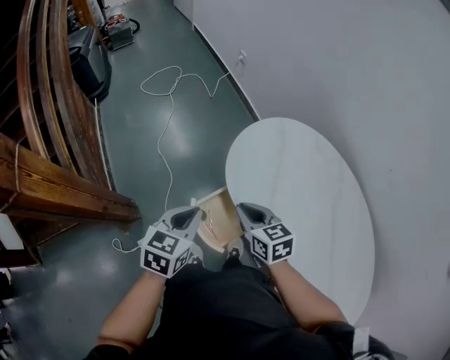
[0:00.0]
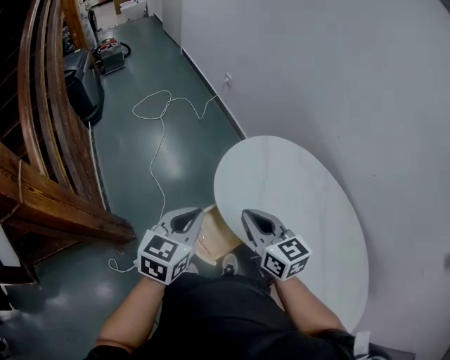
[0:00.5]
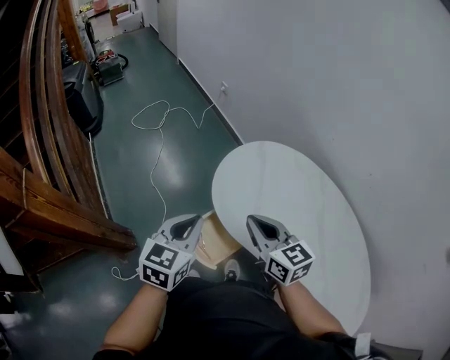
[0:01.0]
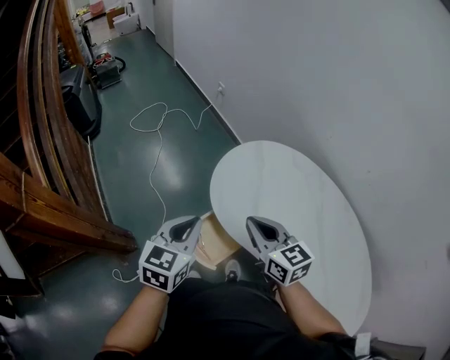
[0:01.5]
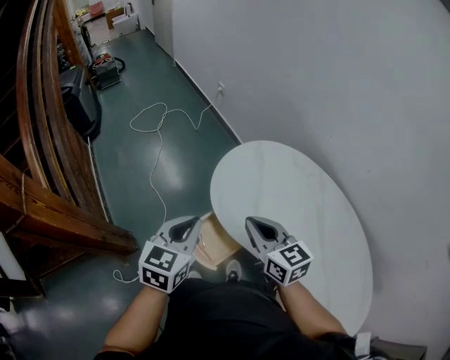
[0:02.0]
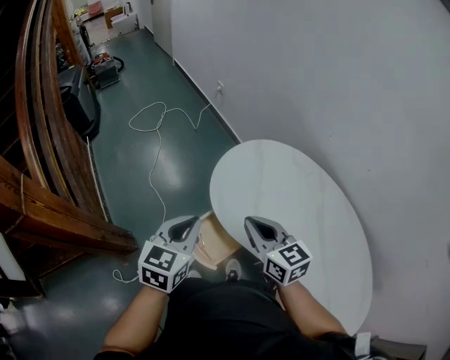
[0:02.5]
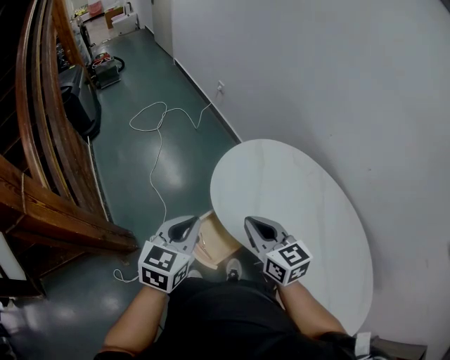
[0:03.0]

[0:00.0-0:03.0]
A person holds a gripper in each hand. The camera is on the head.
0:00.0 to 0:01.5: The right gripper heads upward and to the right, covering some 15 cm, while the left gripper travels upward by approximately 10 cm.
0:01.5 to 0:03.0: Neither gripper changes place.

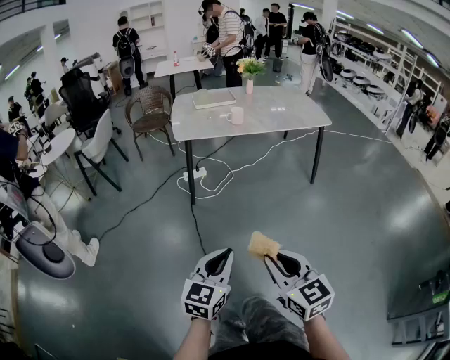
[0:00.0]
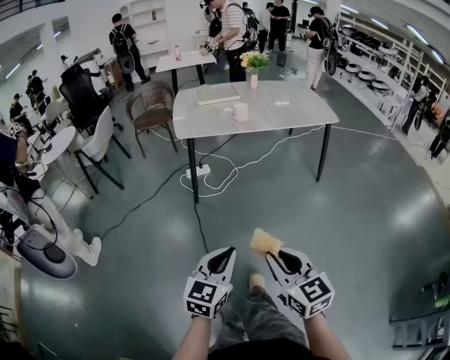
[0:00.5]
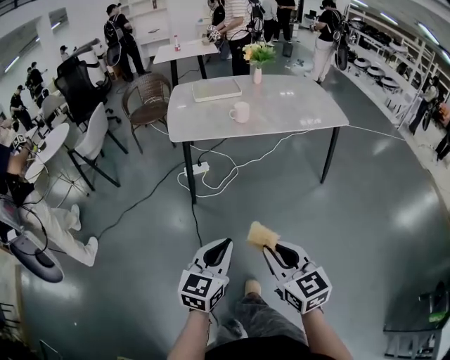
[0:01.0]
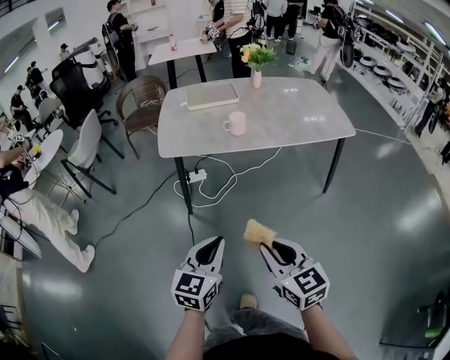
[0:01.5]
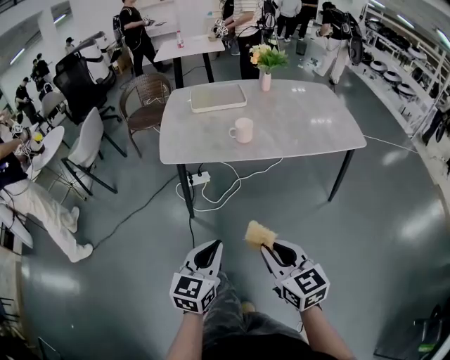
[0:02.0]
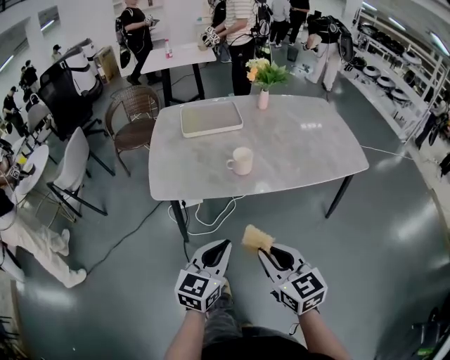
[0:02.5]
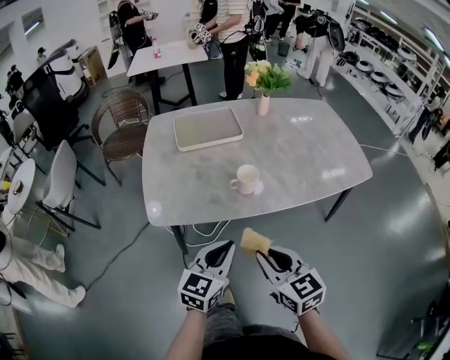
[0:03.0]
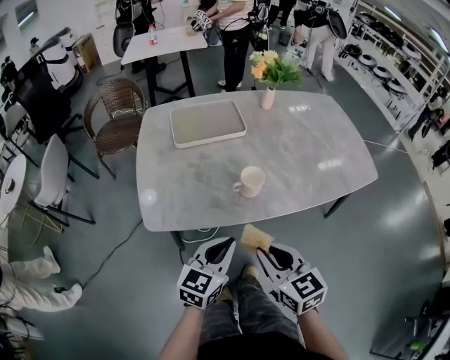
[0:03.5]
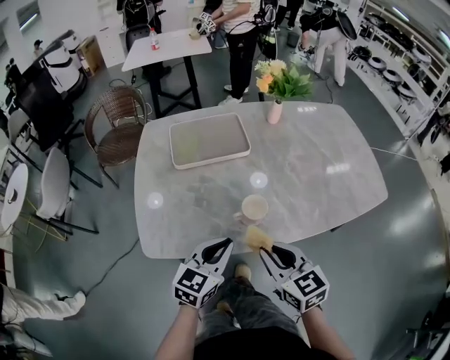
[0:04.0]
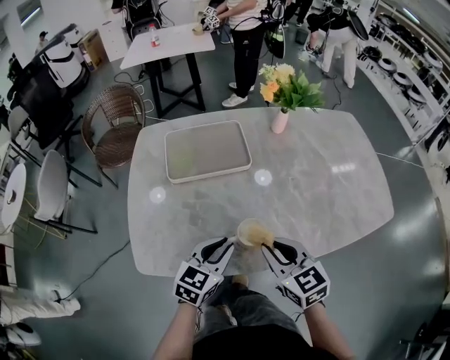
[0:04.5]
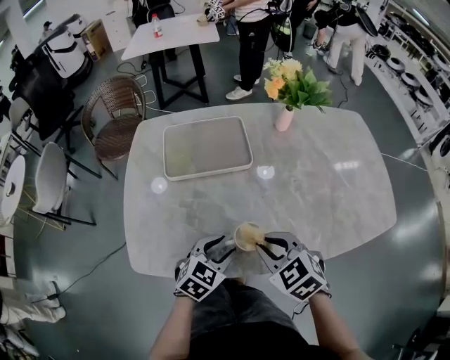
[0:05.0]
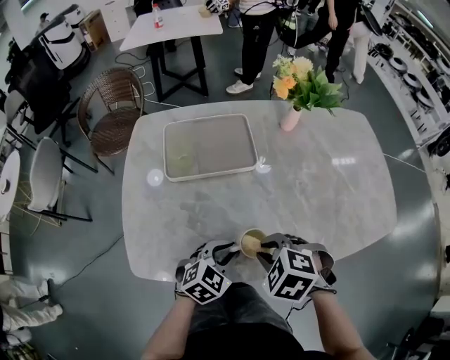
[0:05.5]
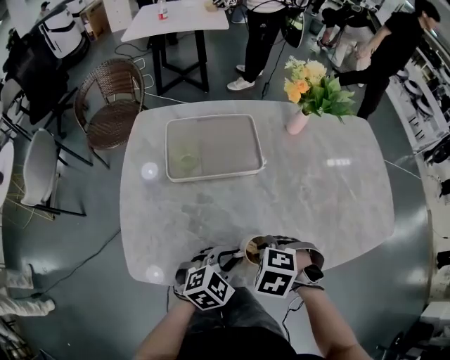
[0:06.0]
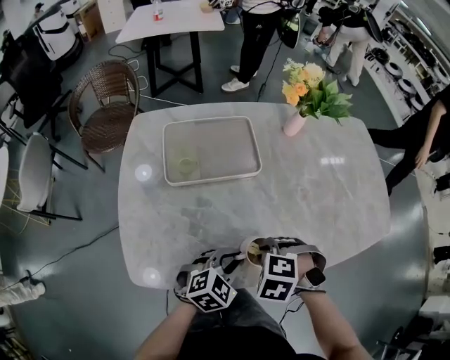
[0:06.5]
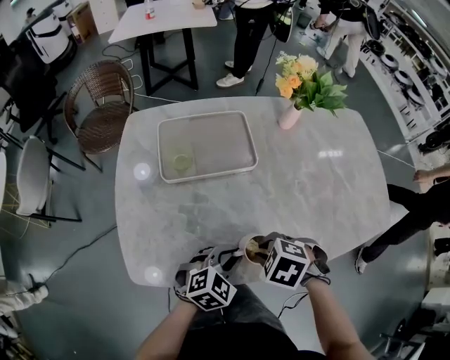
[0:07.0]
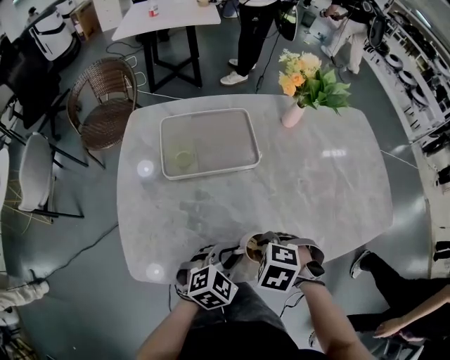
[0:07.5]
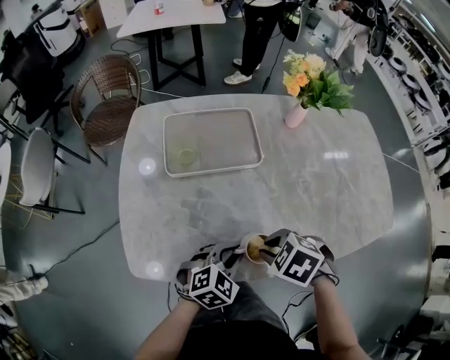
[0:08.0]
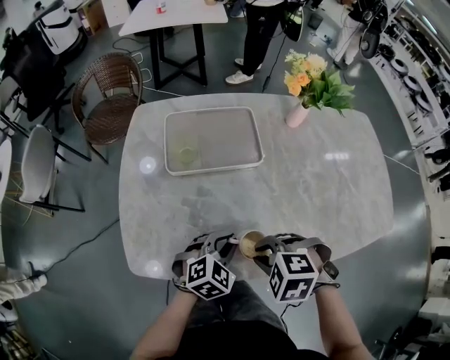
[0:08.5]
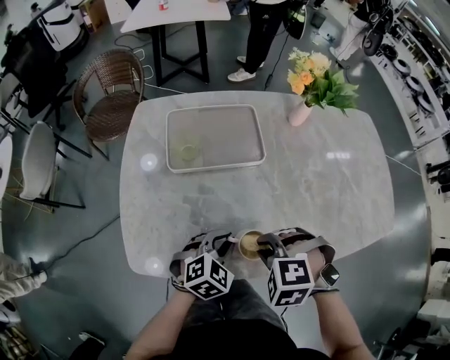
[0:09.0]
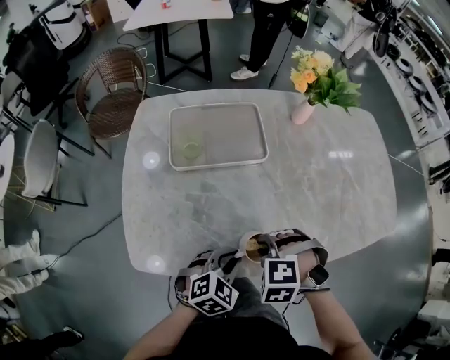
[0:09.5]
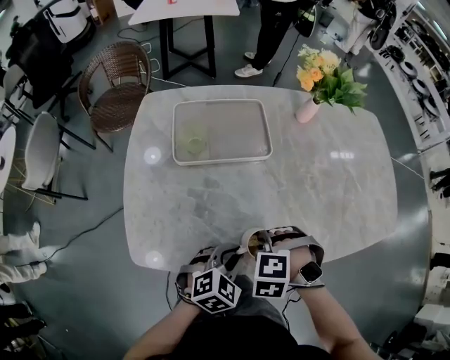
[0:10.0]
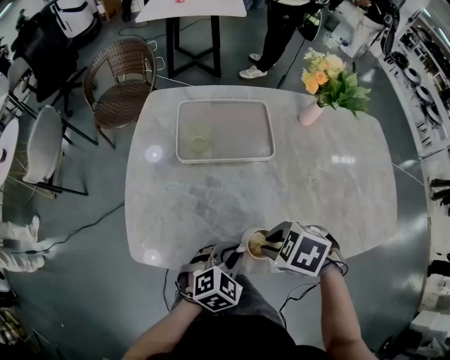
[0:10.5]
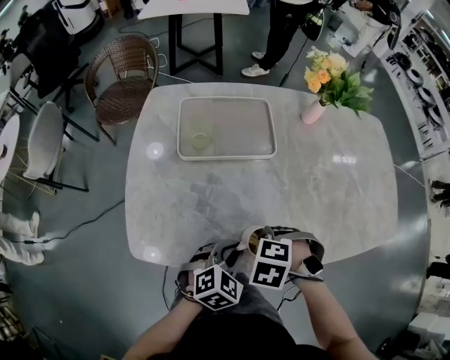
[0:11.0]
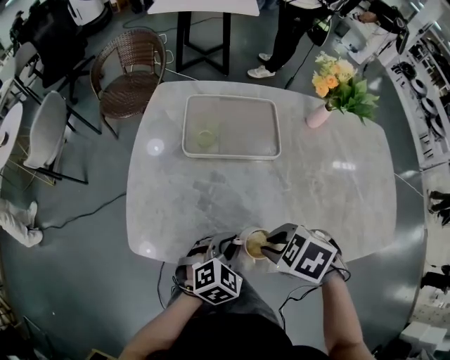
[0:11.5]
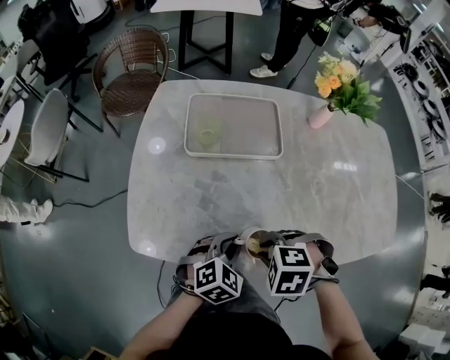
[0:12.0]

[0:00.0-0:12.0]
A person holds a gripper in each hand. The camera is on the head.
0:00.0 to 0:02.0: Both grippers move forward, approximately 35 cm.
0:02.0 to 0:04.0: Both grippers move forward, some 40 cm.
0:04.0 to 0:06.0: The right gripper moves approximately 15 cm, and tilts its fingers approximately 60 degrees downward; the left gripper changes place by approximately 15 cm, changes its angle by about 30 degrees, and opens, then closes once more.
0:08.0 to 0:10.0: The right gripper rotates approximately 40 degrees.
0:10.0 to 0:12.0: The right gripper swings up and down, about 5 cm each way, with 2 reversals.

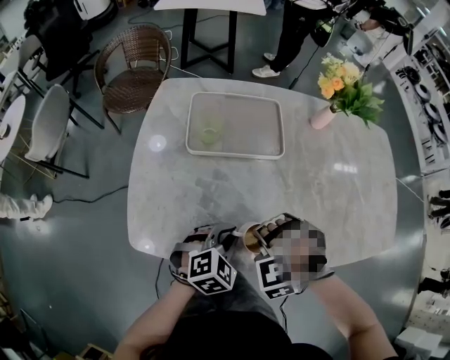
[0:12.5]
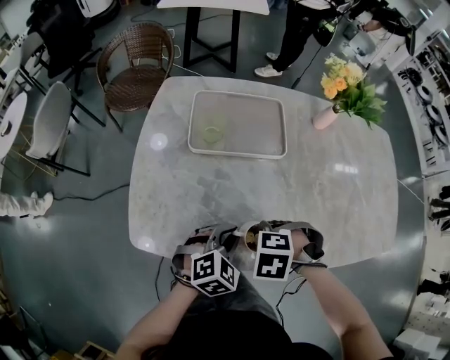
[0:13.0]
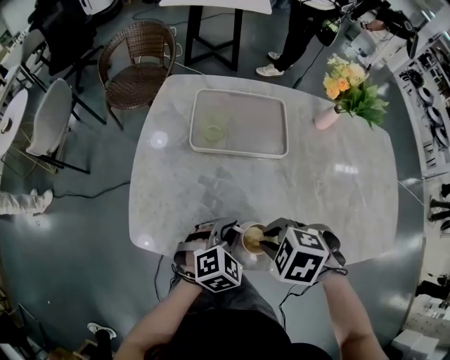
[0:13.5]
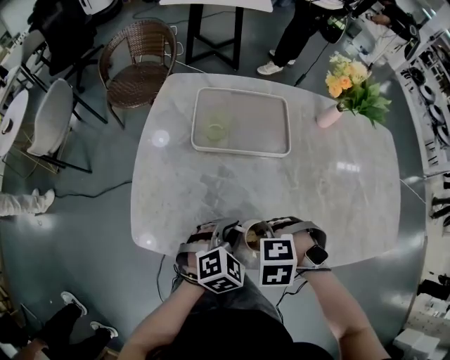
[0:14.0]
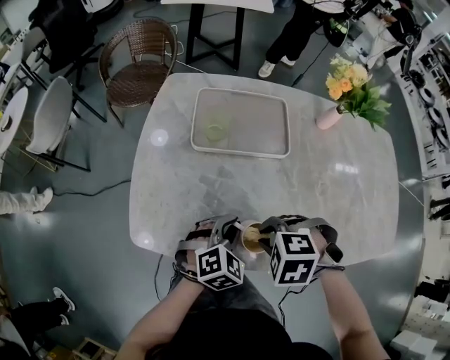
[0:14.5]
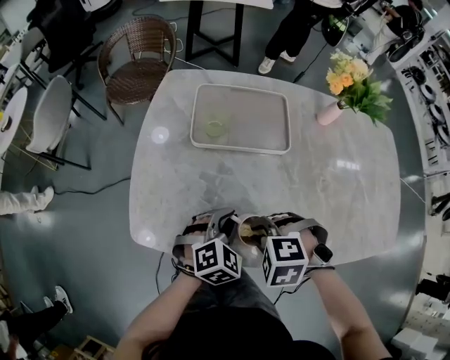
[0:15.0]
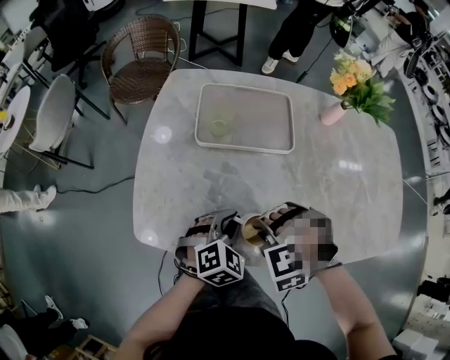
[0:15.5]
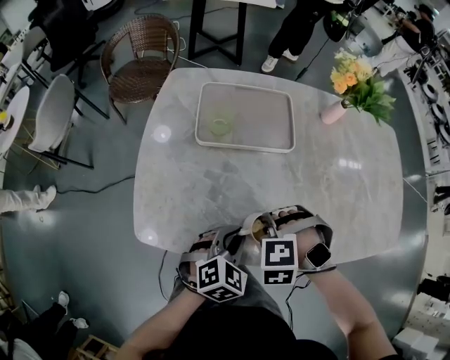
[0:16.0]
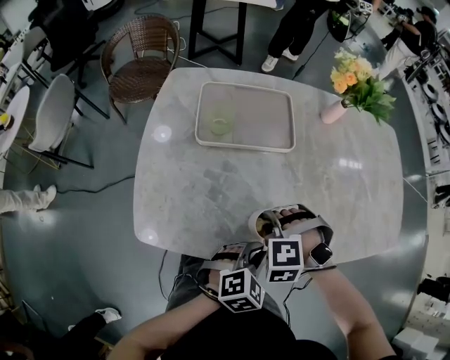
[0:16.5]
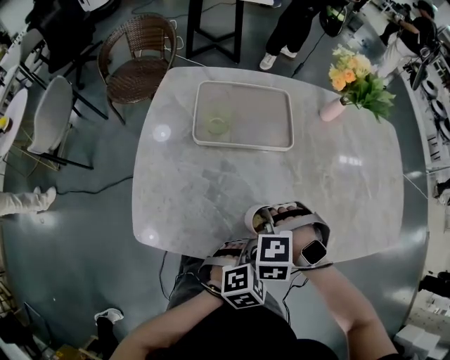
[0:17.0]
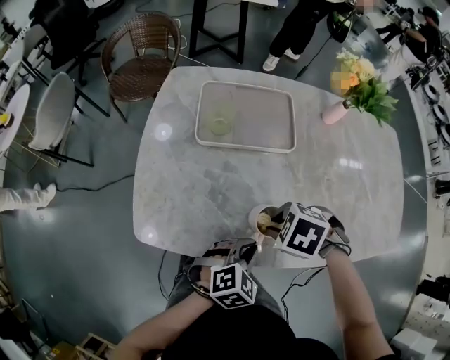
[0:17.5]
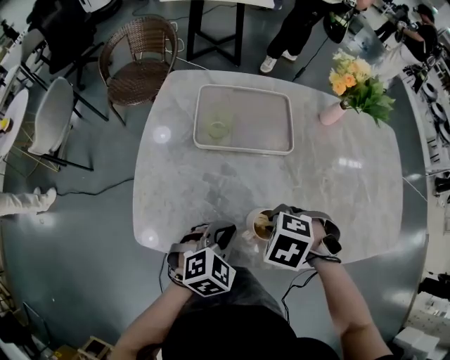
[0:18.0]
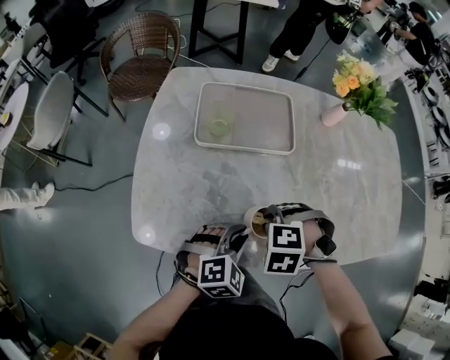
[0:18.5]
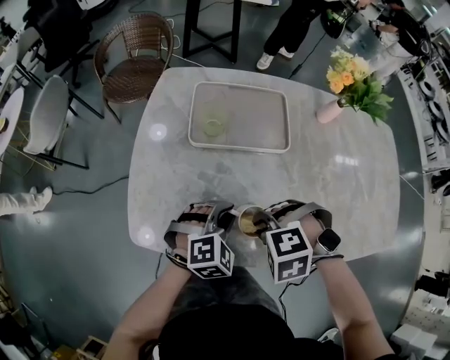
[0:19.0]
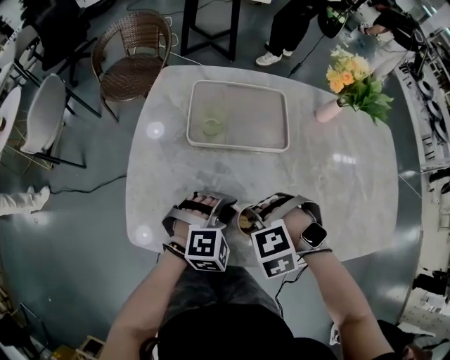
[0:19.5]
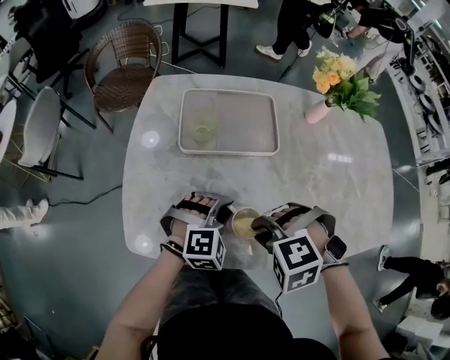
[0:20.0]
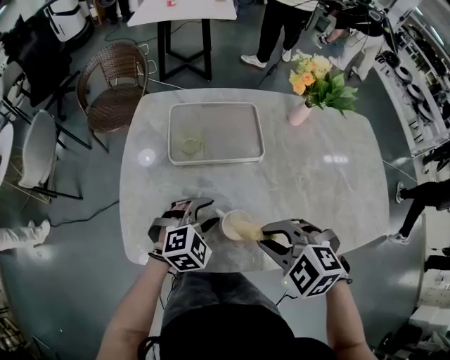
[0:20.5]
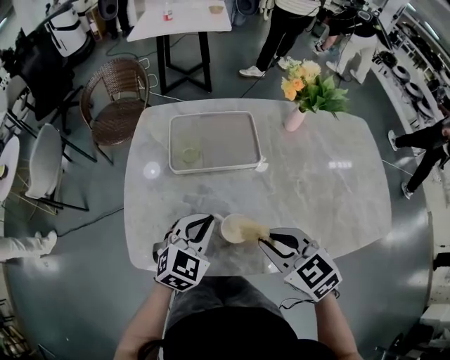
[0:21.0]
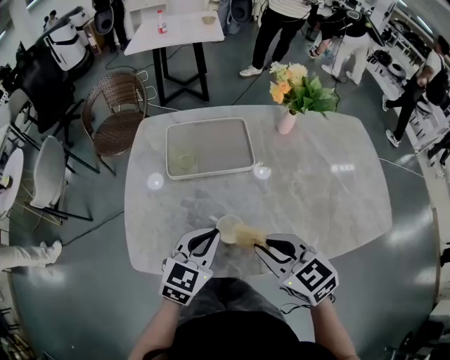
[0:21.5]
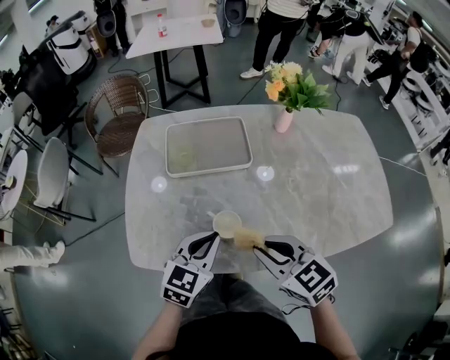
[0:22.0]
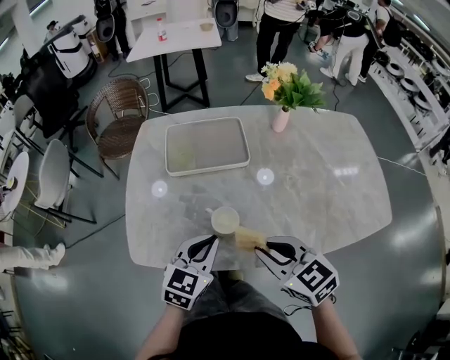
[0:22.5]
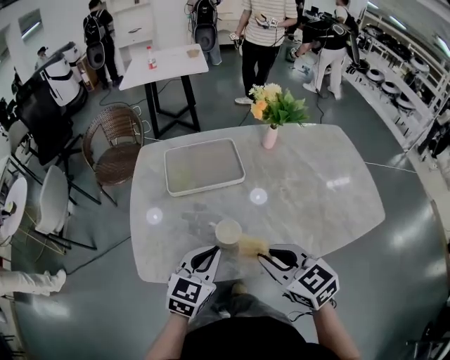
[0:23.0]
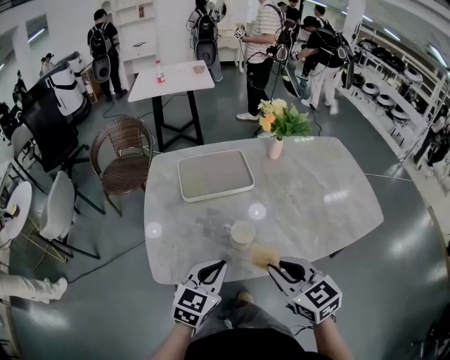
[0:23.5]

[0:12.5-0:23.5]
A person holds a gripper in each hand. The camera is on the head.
0:12.5 to 0:14.5: The right gripper moves up and down over roughly 5 cm, changing direction 2 times, and rotates approximately 40 degrees.
0:14.5 to 0:16.0: The right gripper swivels roughly 20 degrees.
0:16.0 to 0:18.0: The right gripper rotates roughly 30 degrees.
0:18.0 to 0:20.0: The right gripper changes its angle by approximately 30 degrees; the left gripper shifts by approximately 5 cm, and swivels roughly 30 degrees.
0:20.0 to 0:21.5: Both grippers move upward, about 10 cm. The left gripper rolls counterclockwise, seen from behind, by approximately 50 degrees, and opens, then closes again; the right gripper tilts its fingers about 40 degrees upward.
0:21.5 to 0:23.5: The grippers both shift backward by about 10 cm.

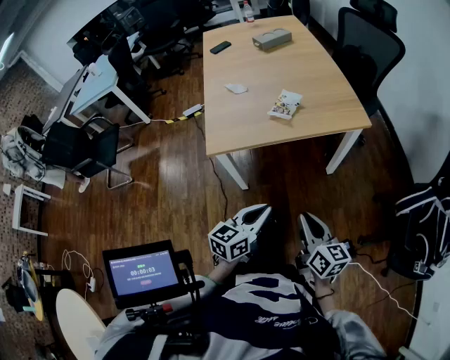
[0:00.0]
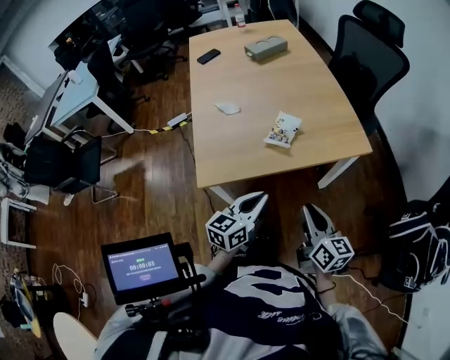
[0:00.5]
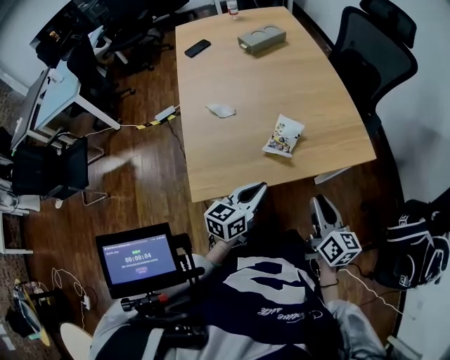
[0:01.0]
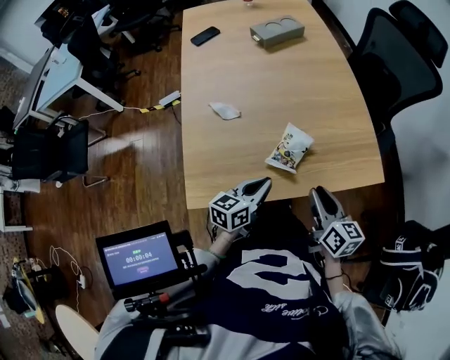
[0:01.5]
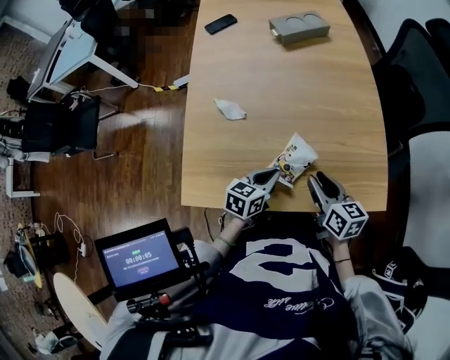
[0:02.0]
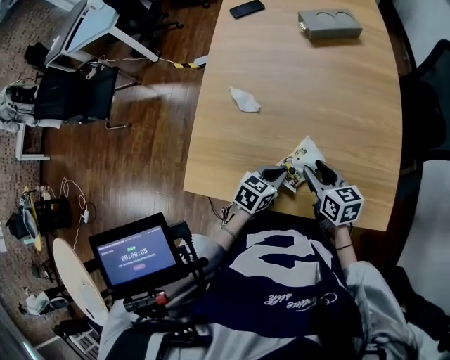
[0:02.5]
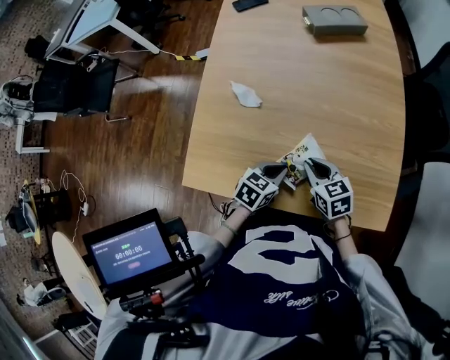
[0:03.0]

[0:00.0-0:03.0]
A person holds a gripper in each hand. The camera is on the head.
0:00.0 to 0:01.5: The grippers both shift forward by about 40 cm.
0:01.5 to 0:03.0: The right gripper is displaced forward and downward by roughly 20 cm, and turns by about 50 degrees. Meanwhile the left gripper heads forward and downward, covering about 10 cm, and rotates about 30 degrees.
